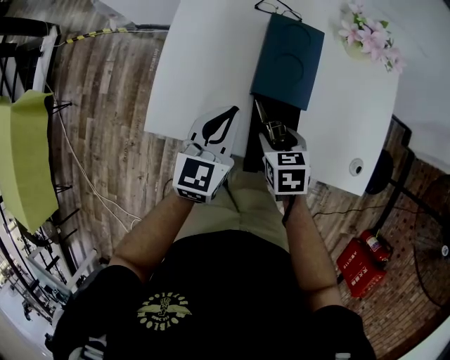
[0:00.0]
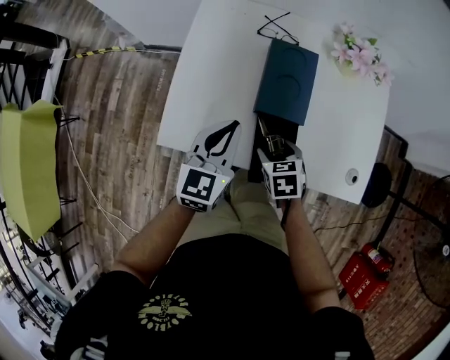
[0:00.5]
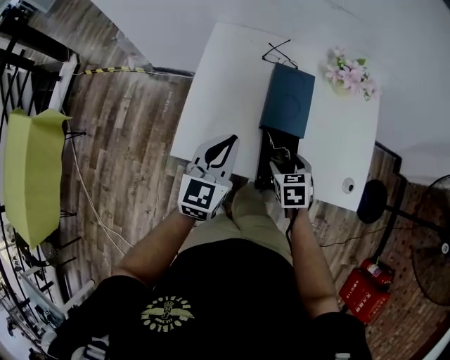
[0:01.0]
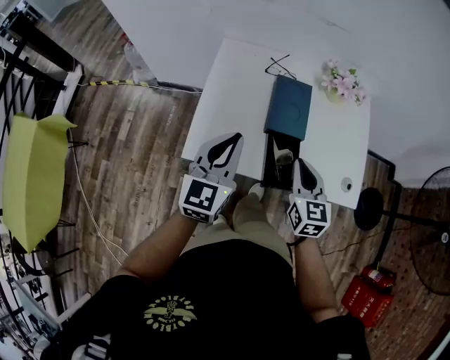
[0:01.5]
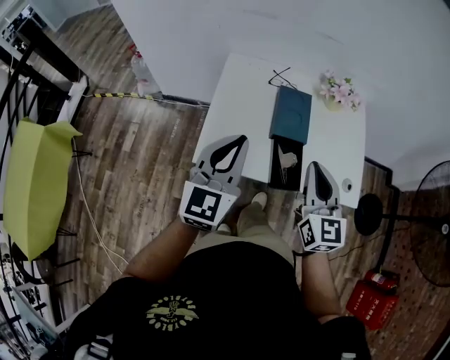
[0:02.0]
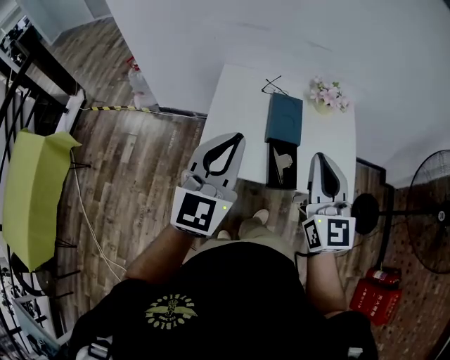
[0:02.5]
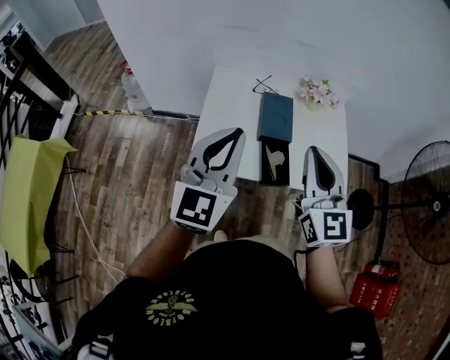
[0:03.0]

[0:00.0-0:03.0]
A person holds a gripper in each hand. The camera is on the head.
0:00.0 to 0:01.5: The left gripper heads upward and to the left, covering approximately 20 cm. The right gripper travels upward by some 20 cm, points its fingers roughly 40 degrees further upward, and closes its fingers.
0:01.5 to 0:03.0: The left gripper shifts approximately 20 cm upward and backward, while the right gripper is displaced upward by about 25 cm, and swivels roughly 30 degrees.

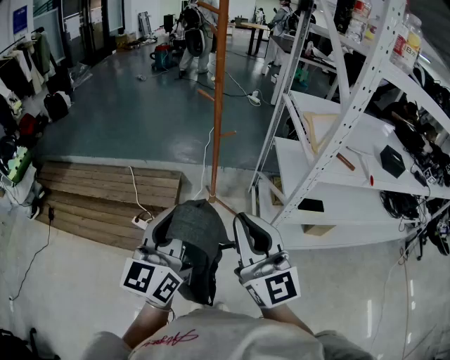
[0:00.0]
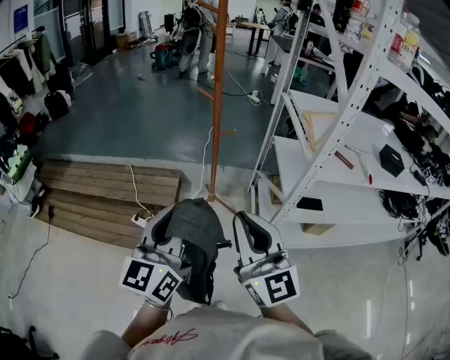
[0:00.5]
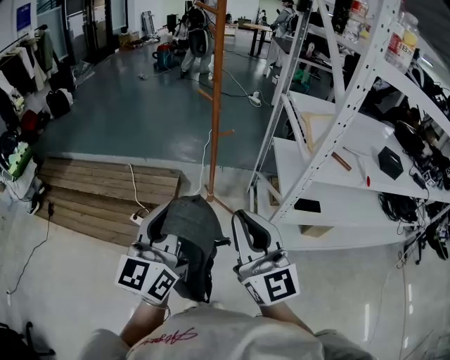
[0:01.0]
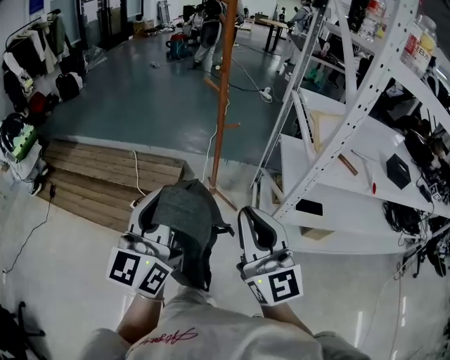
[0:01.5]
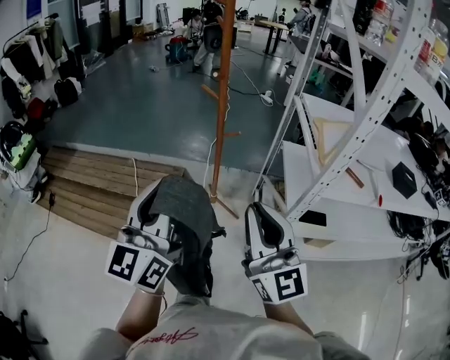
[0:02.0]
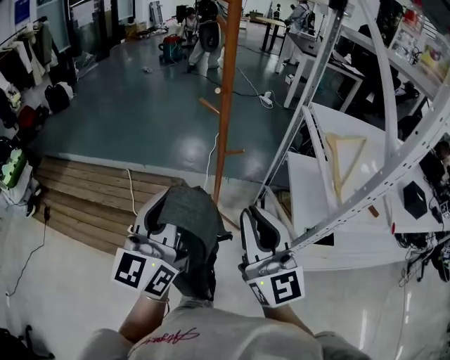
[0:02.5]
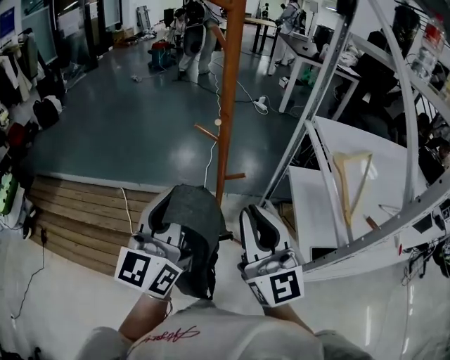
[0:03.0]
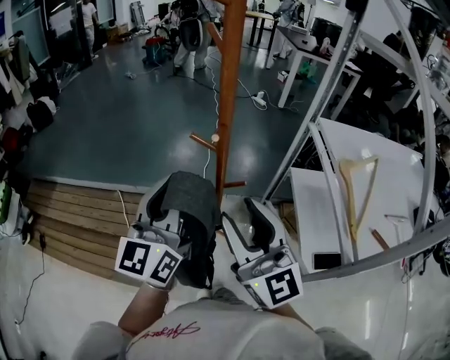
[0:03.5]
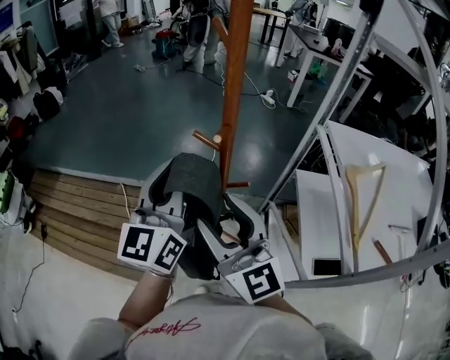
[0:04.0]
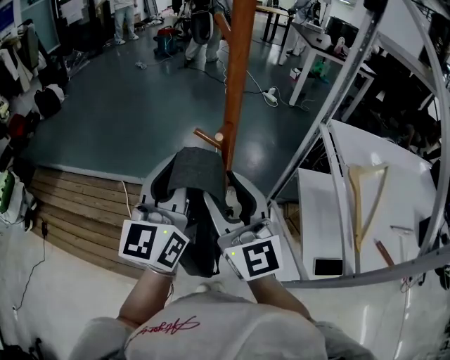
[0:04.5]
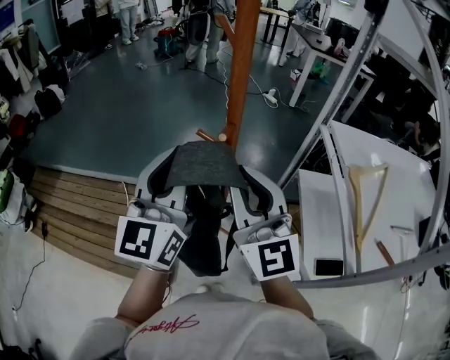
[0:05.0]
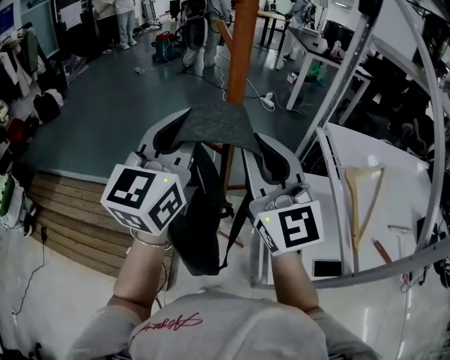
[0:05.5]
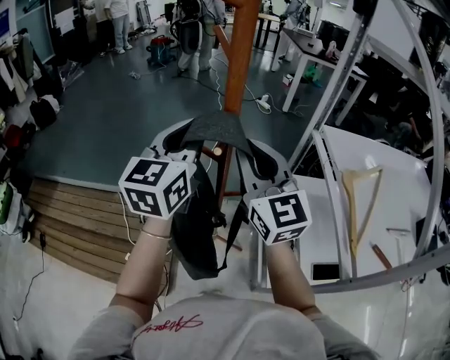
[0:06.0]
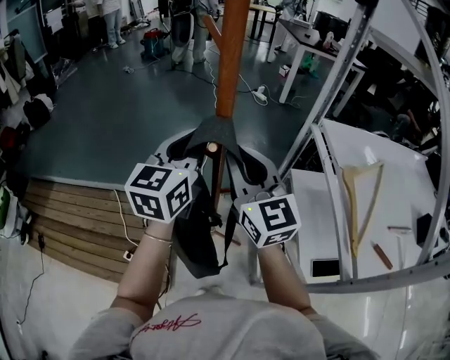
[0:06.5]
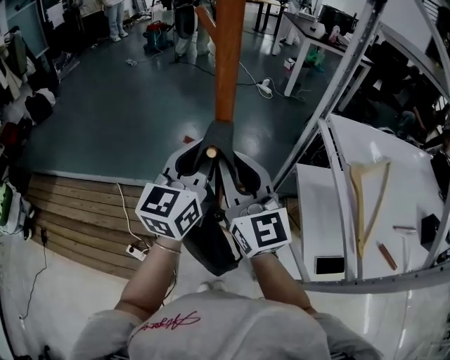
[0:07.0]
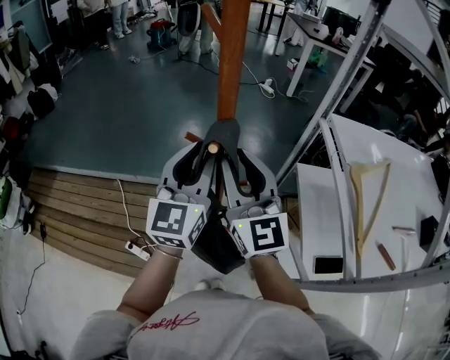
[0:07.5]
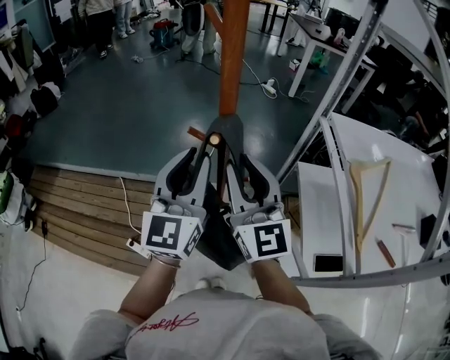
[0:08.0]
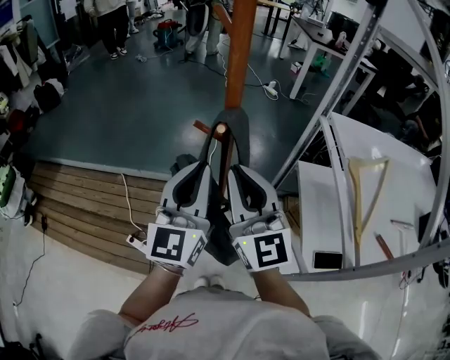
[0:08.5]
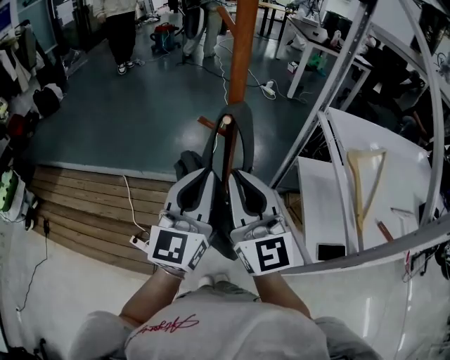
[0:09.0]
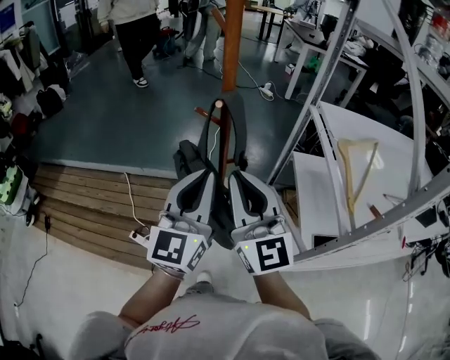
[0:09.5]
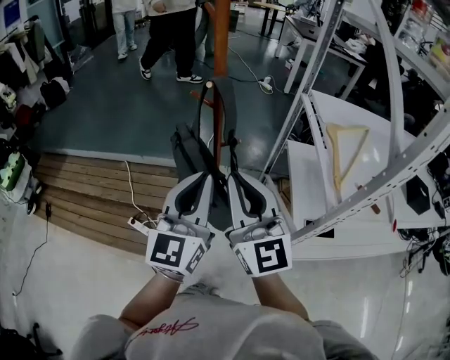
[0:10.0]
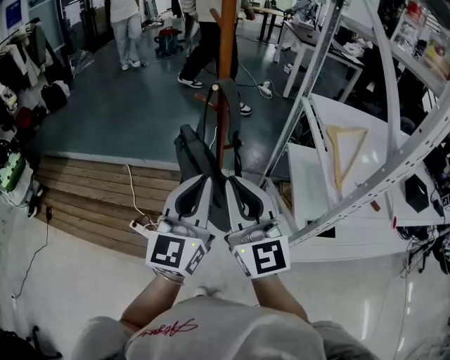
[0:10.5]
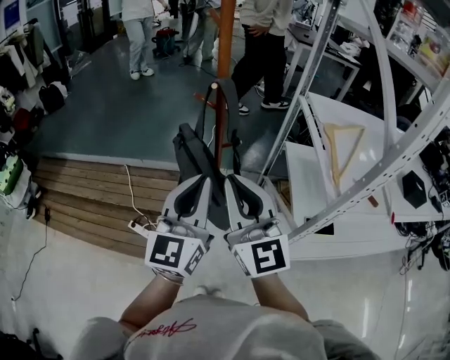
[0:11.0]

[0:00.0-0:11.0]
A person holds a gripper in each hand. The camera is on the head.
0:00.0 to 0:02.0: The right gripper is displaced to the right and forward by approximately 10 cm, while the left gripper moves forward, approximately 5 cm.
0:02.0 to 0:03.5: The two grippers go approximately 30 cm forward. The right gripper opens its fingers.
0:03.5 to 0:05.5: The left gripper travels upward and forward by approximately 10 cm; the right gripper goes roughly 15 cm forward and upward, and closes up.
0:05.5 to 0:07.5: The two grippers go some 10 cm downward.
0:07.5 to 0:09.0: Both grippers travel together backward, roughly 10 cm.
0:09.0 to 0:11.0: Both grippers travel together backward, roughly 15 cm.

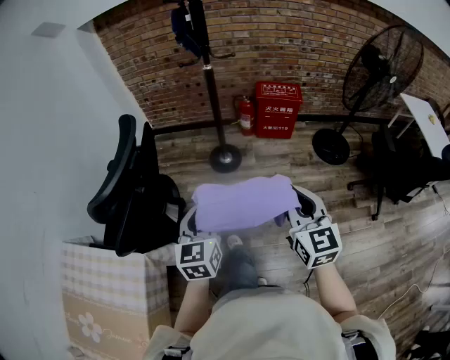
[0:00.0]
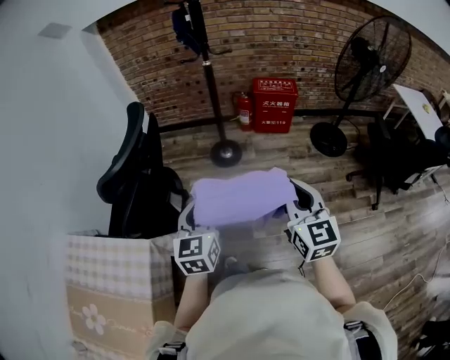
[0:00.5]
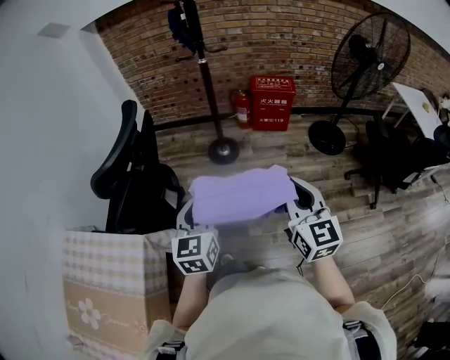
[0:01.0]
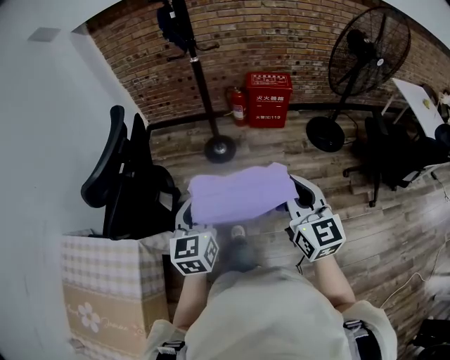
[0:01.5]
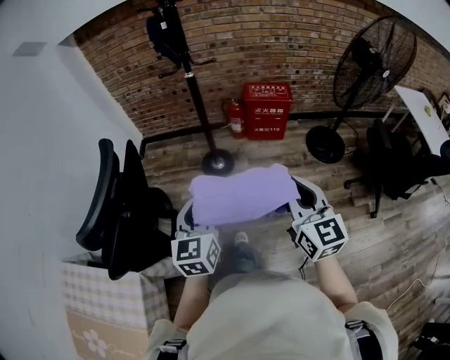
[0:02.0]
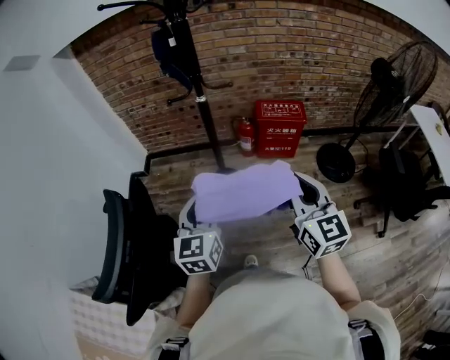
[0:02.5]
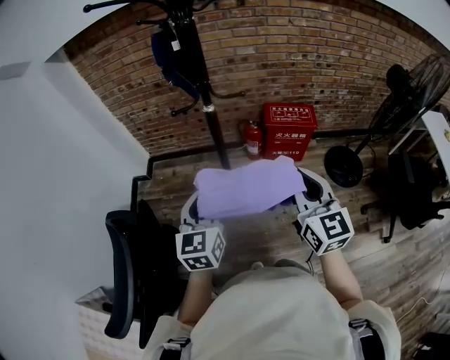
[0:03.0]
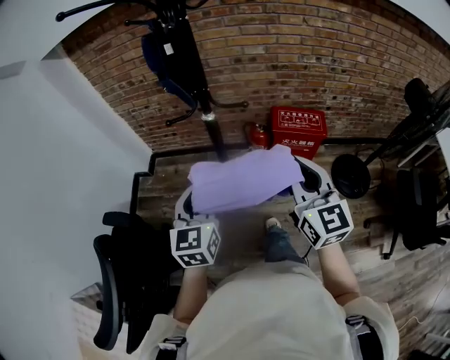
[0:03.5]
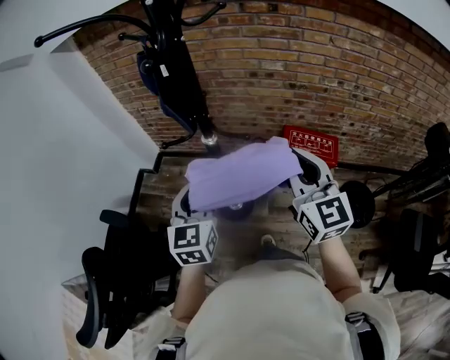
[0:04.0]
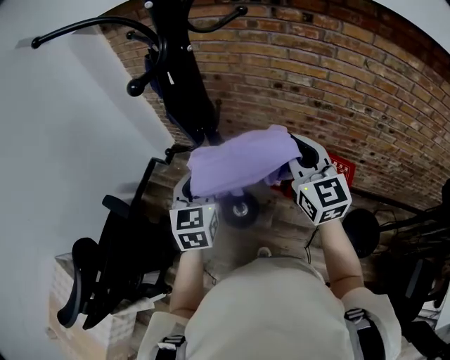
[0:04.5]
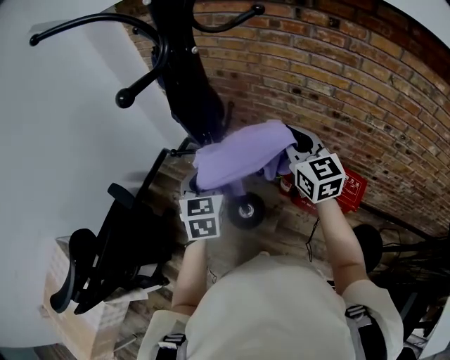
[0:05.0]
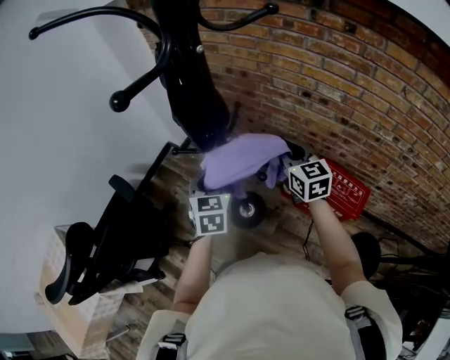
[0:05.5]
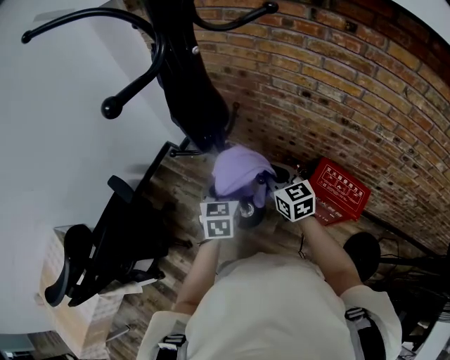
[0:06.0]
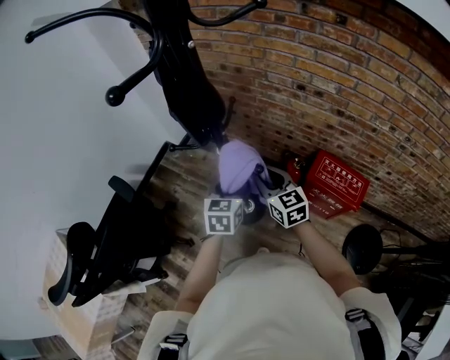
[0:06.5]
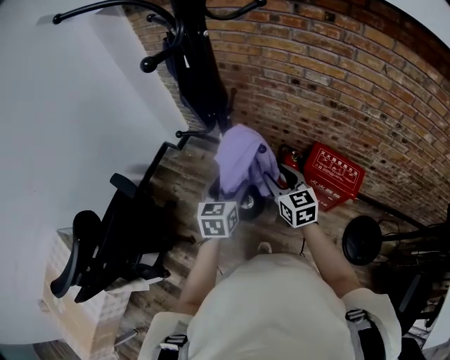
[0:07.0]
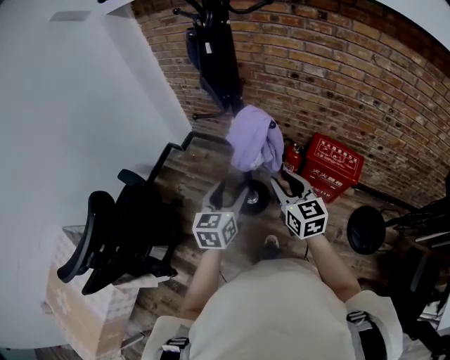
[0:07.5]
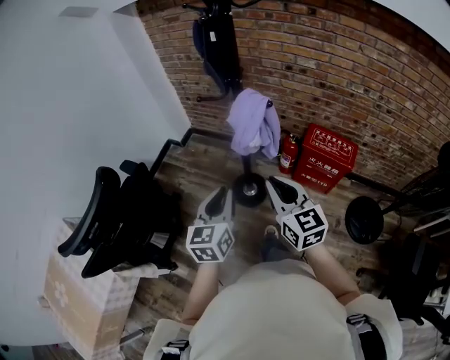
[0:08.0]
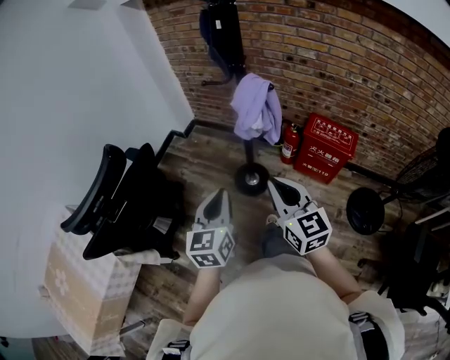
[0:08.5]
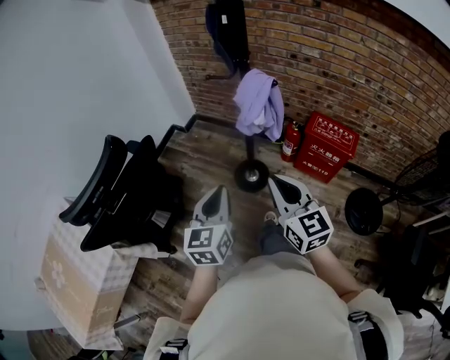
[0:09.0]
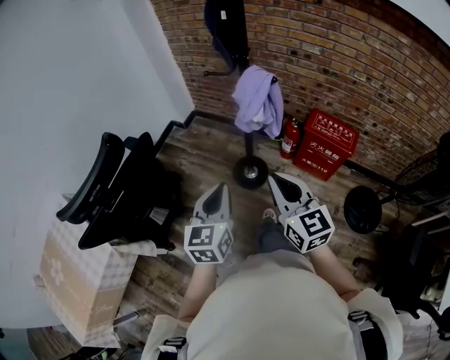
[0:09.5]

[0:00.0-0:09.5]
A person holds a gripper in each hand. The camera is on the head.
0:00.0 to 0:02.0: The two grippers go approximately 5 cm forward.
0:02.0 to 0:04.0: The two grippers travel together, forward, approximately 50 cm.
0:04.0 to 0:05.5: The right gripper moves forward and downward, about 30 cm, and rotates about 30 degrees; the left gripper is displaced forward and downward by about 15 cm, and changes its angle by roughly 30 degrees.
0:05.5 to 0:07.5: The grippers both shift backward by about 20 cm. The right gripper opens. The left gripper rotates some 30 degrees, and opens.
0:07.5 to 0:09.5: The grippers both shift backward by approximately 20 cm. The right gripper closes; the left gripper closes up.

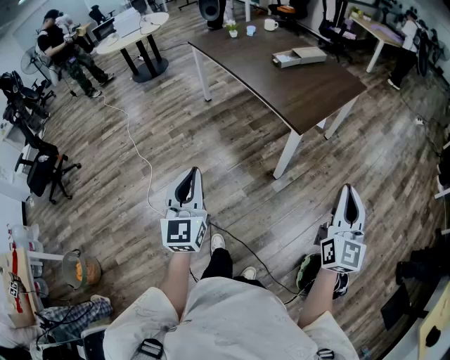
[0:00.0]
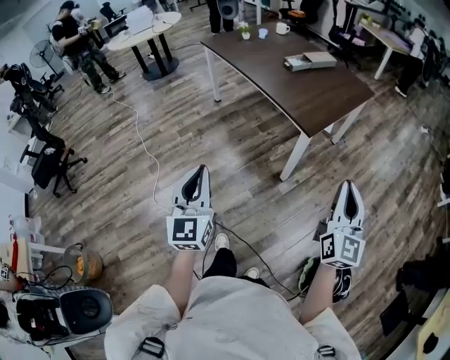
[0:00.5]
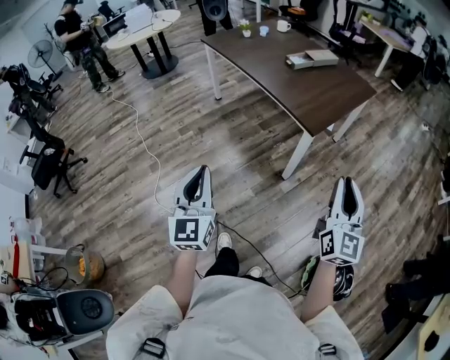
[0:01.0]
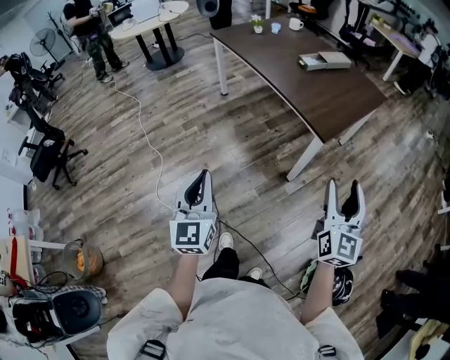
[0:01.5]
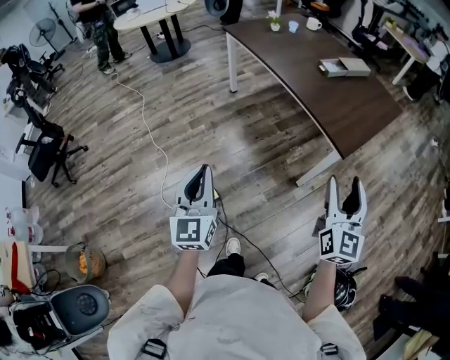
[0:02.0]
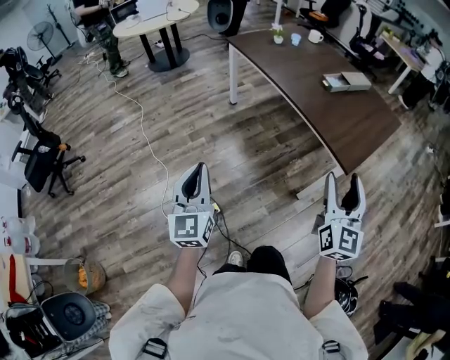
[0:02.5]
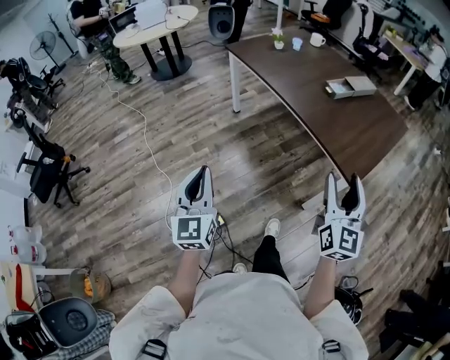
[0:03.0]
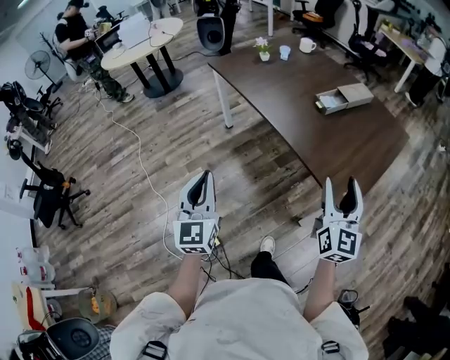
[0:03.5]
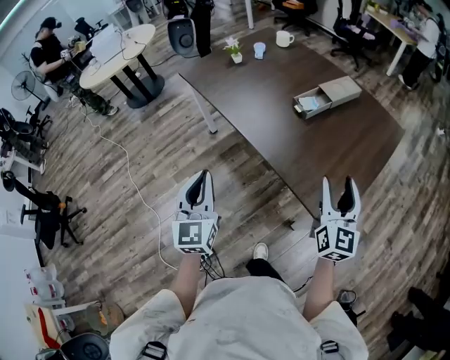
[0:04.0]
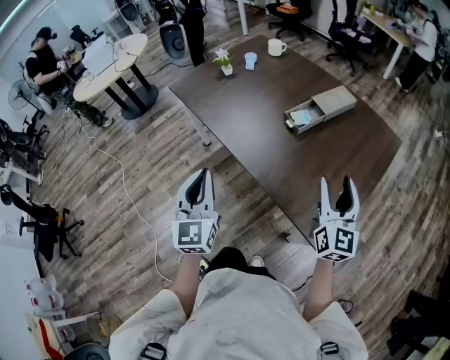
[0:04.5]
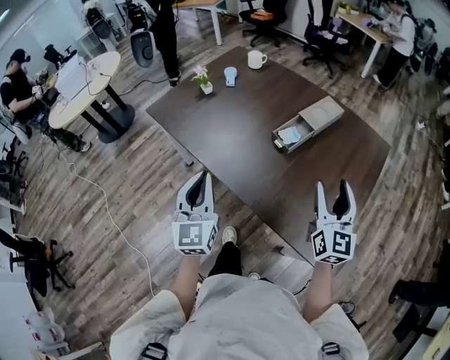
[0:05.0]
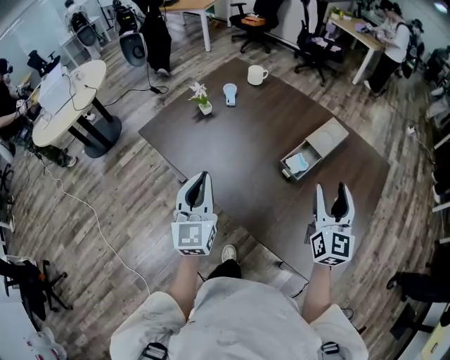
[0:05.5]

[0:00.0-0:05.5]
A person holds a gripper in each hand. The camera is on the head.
0:00.0 to 0:02.0: Both grippers move to the left and forward, about 25 cm. The right gripper opens its fingers.
0:02.0 to 0:03.5: Both grippers move forward, some 25 cm.
0:03.5 to 0:05.5: The two grippers travel together, forward, roughly 50 cm.
